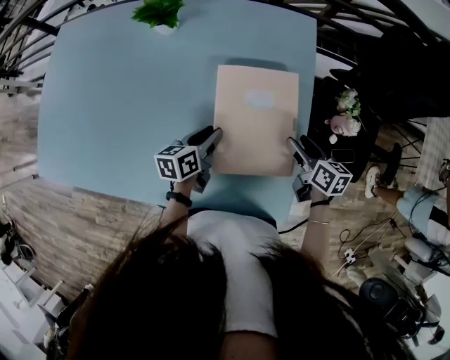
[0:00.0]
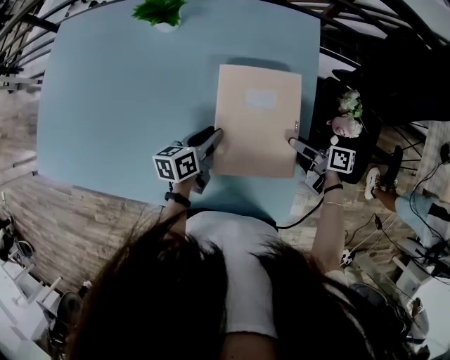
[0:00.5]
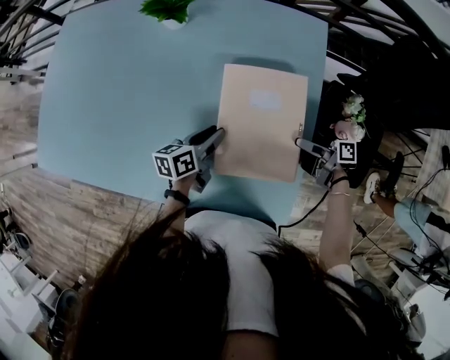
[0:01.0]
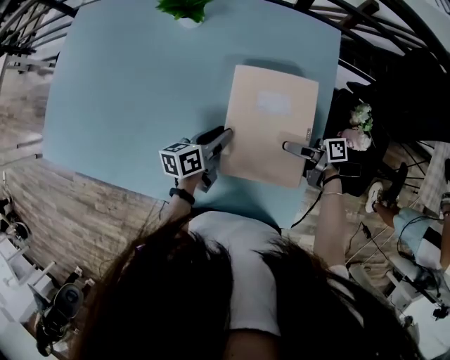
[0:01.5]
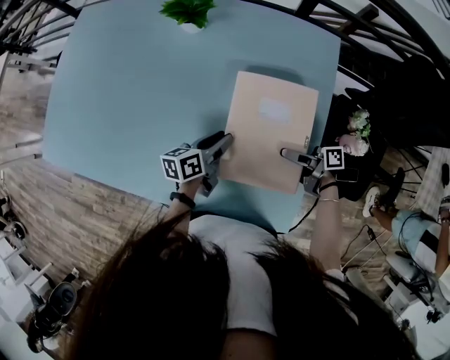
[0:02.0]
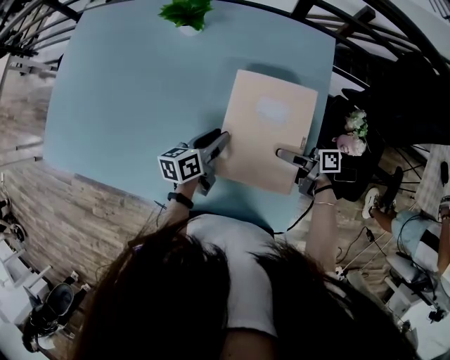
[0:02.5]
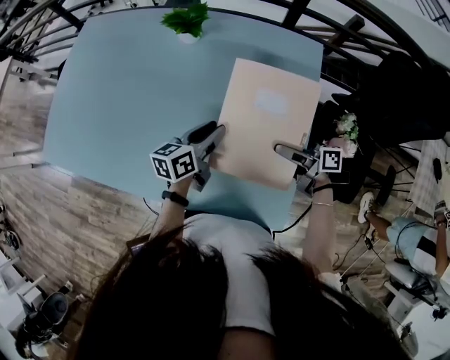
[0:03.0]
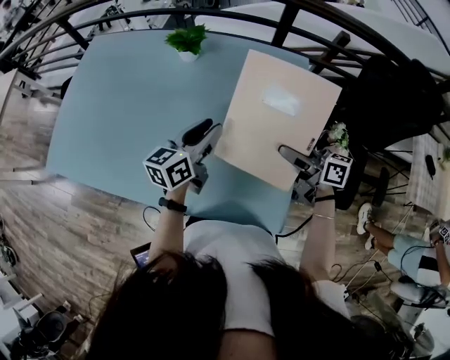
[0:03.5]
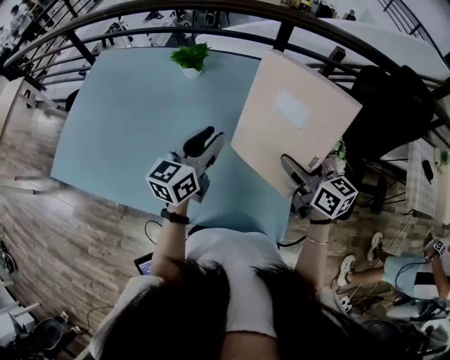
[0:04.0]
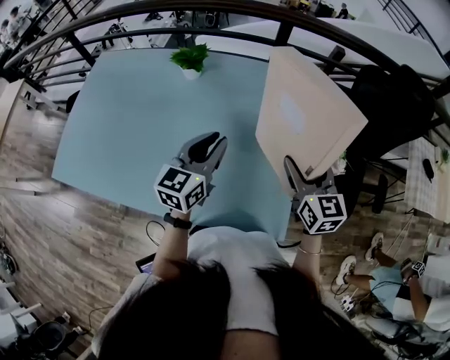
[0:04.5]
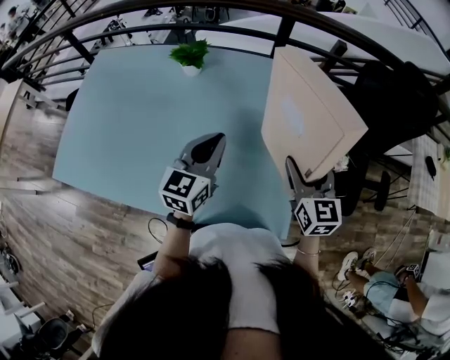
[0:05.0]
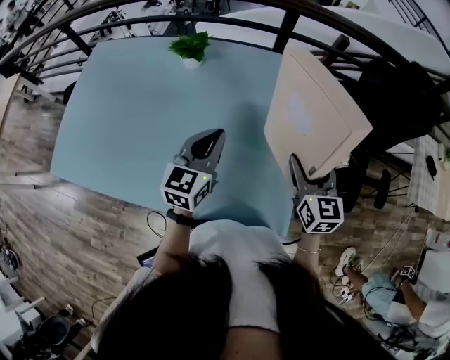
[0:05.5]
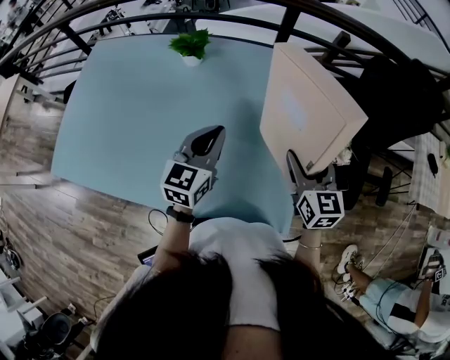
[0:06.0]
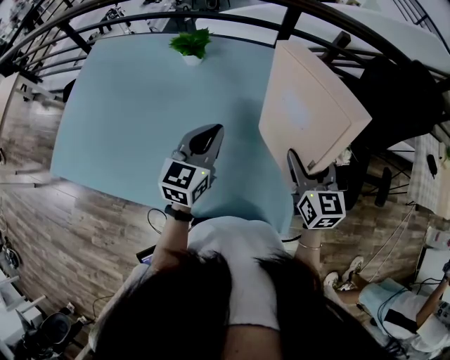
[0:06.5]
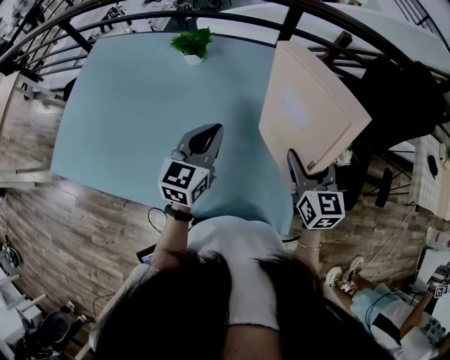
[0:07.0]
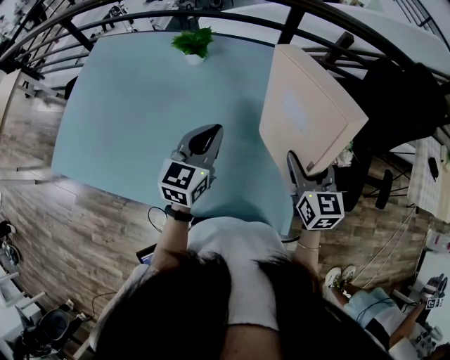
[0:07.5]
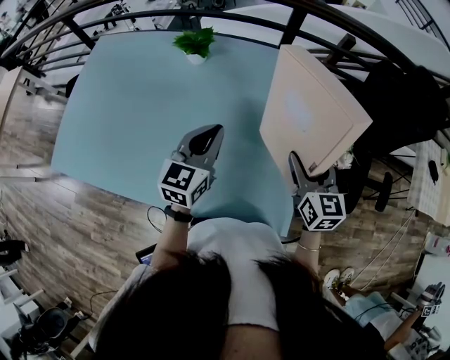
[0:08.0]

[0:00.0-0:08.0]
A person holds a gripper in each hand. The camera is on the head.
0:00.0 to 0:02.0: The right gripper is displaced to the left by roughly 10 cm, and rotates roughly 60 degrees.
0:02.0 to 0:04.0: The grippers both shift upward by approximately 25 cm. The right gripper twists roughly 60 degrees counterclockwise, seen from behind. Meanwhile the left gripper turns by about 40 degrees.
0:04.0 to 0:06.0: The right gripper changes its angle by roughly 30 degrees. Meanwhile the left gripper closes up.
0:06.0 to 0:08.0: The two grippers keep their place.

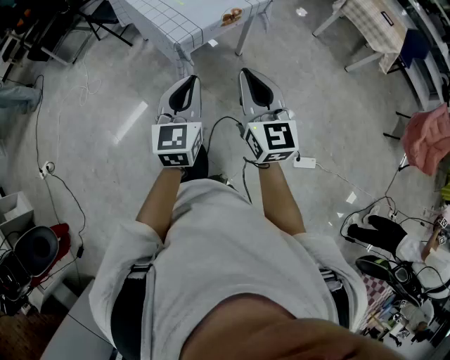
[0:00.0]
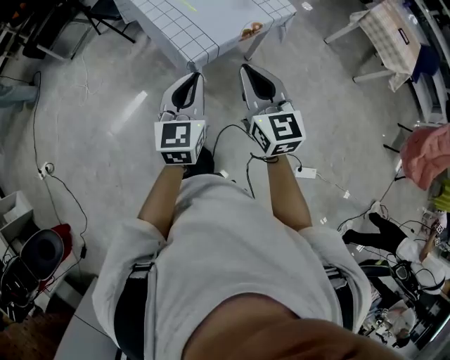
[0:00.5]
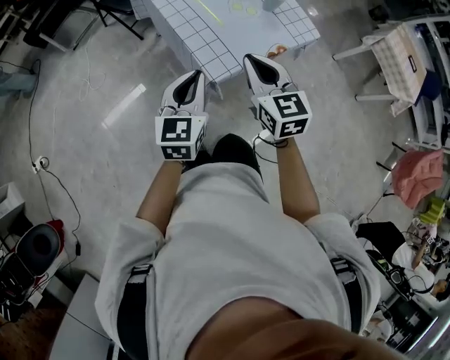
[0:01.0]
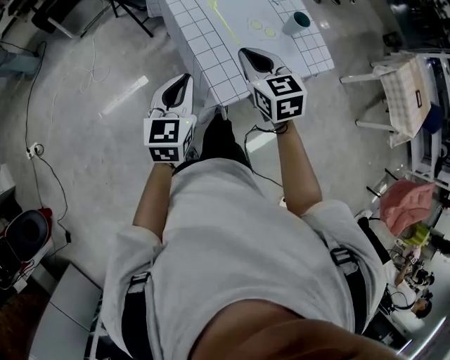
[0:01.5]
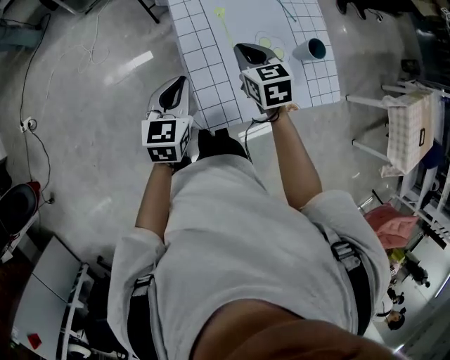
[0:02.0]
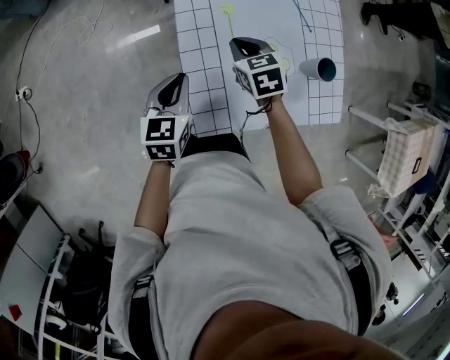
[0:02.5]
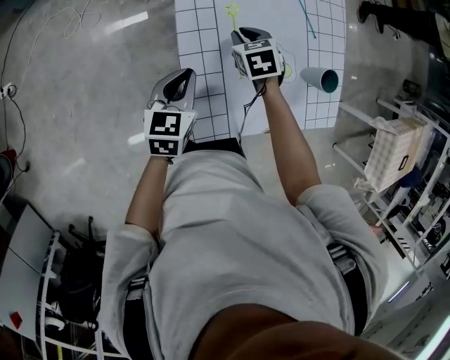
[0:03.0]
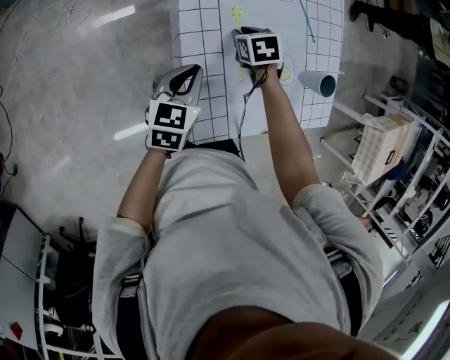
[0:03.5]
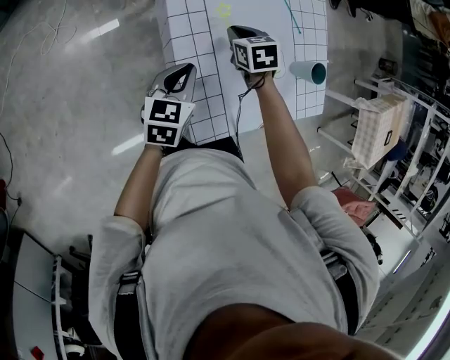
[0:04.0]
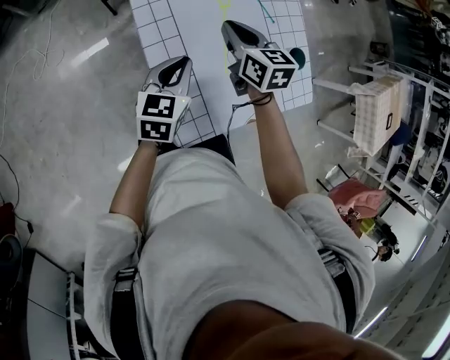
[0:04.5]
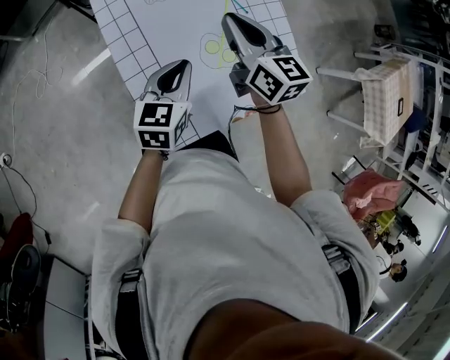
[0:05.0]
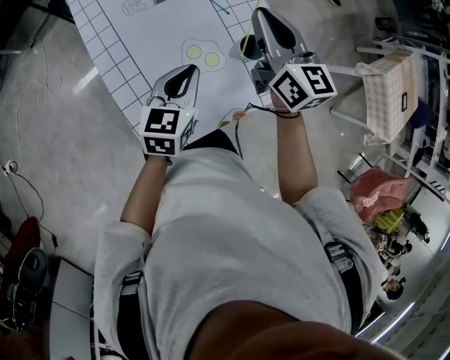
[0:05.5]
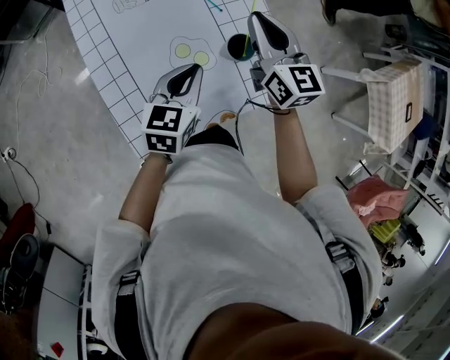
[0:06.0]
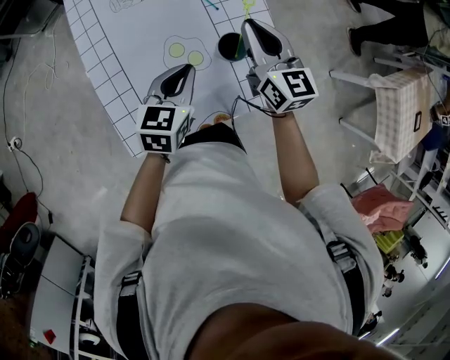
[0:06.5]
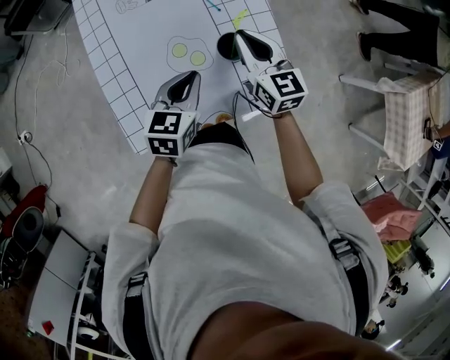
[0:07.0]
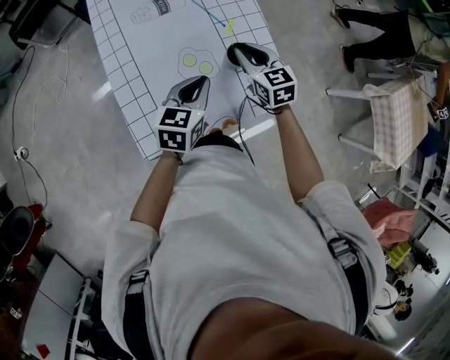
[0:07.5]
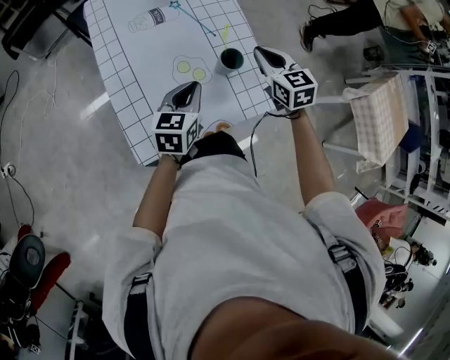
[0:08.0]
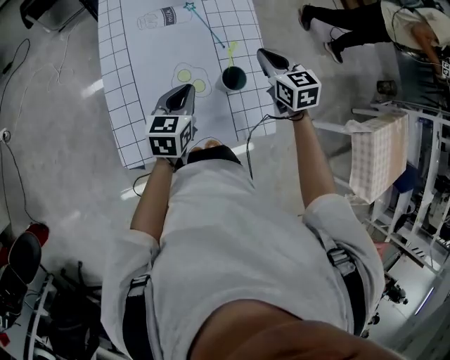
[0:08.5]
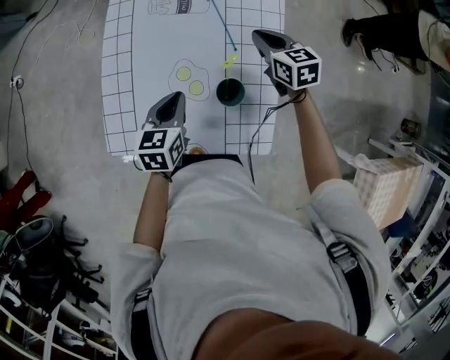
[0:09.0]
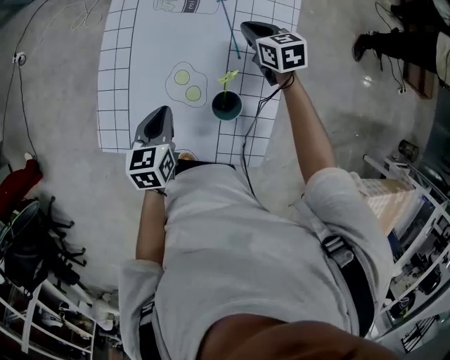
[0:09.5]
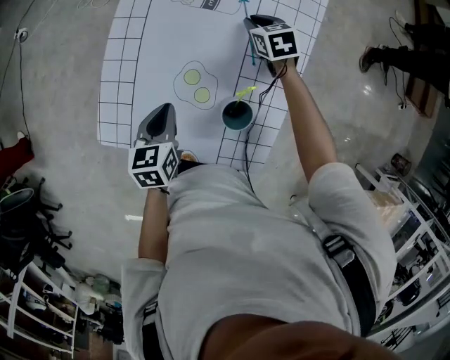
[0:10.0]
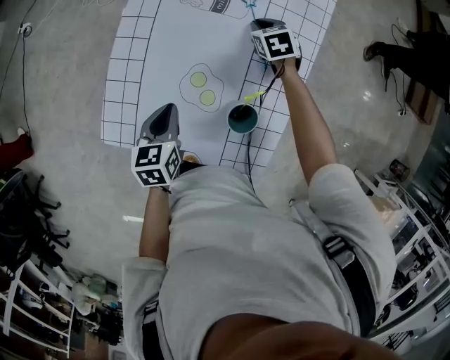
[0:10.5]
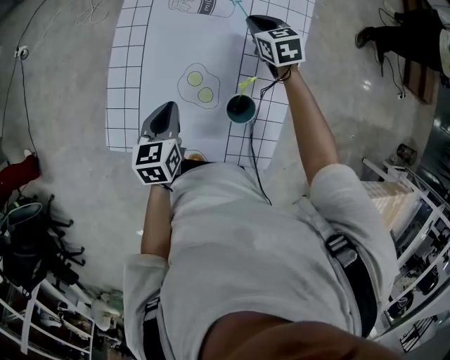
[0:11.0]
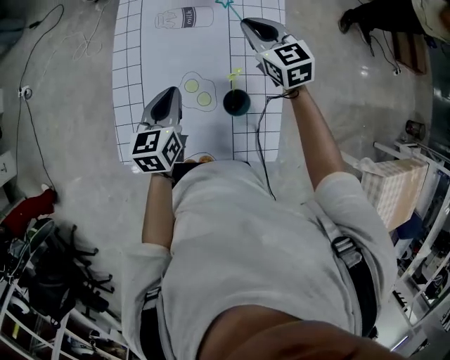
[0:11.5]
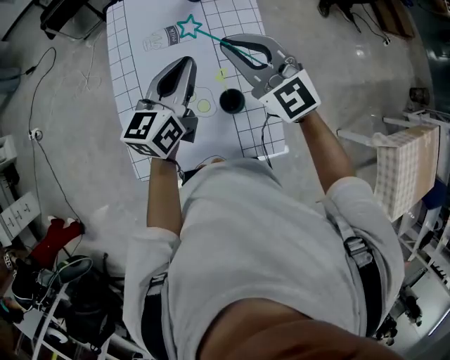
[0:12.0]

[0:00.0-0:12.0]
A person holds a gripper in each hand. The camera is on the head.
0:00.0 to 0:02.0: The pair of grippers is taken some 60 cm. The left gripper changes its angle by approximately 30 degrees. The right gripper tilts its fingers about 40 degrees downward.
0:02.0 to 0:04.0: Both grippers move forward and downward, approximately 15 cm.
0:04.0 to 0:06.0: The right gripper travels to the right and upward by roughly 35 cm, and tilts its fingers roughly 50 degrees upward. The left gripper shifts some 30 cm to the right.
0:06.0 to 0:08.0: Both grippers travel together backward, approximately 5 cm. The right gripper goes downward and returns, roughly 10 cm each way, and changes its angle by approximately 20 degrees.
0:08.0 to 0:10.0: The left gripper heads downward, covering some 10 cm, and changes its angle by about 50 degrees. The right gripper ends up some 35 cm from where it was, and rotates roughly 40 degrees.
0:10.0 to 0:12.0: The left gripper is displaced upward and to the right by roughly 25 cm, and points its fingers roughly 40 degrees further upward; the right gripper travels upward and backward by about 40 cm, and points its fingers some 40 degrees further upward.

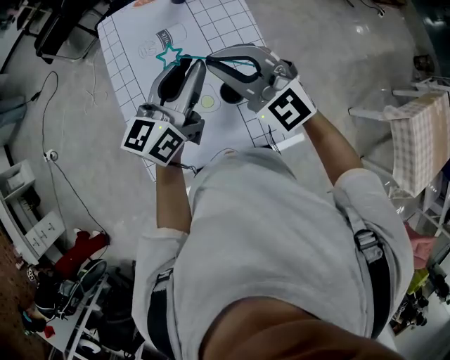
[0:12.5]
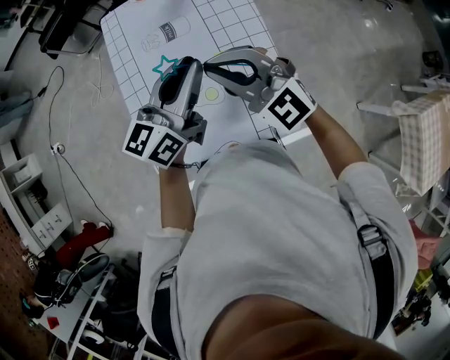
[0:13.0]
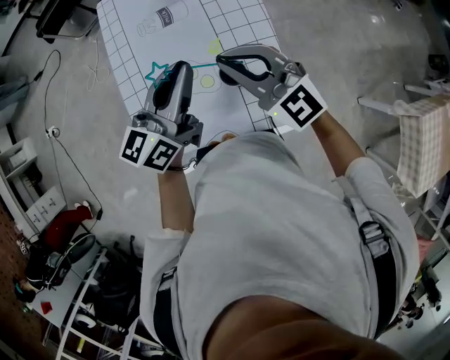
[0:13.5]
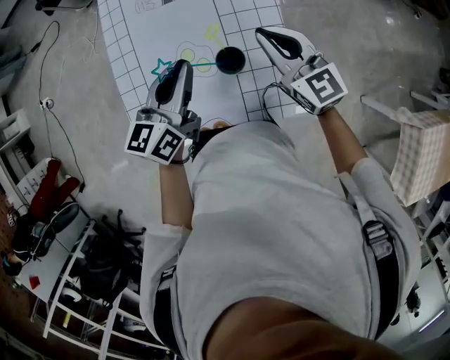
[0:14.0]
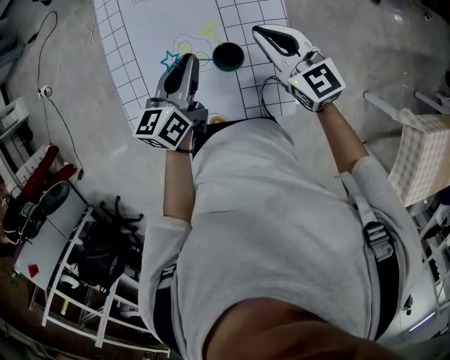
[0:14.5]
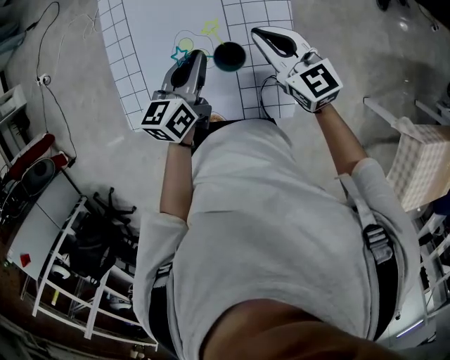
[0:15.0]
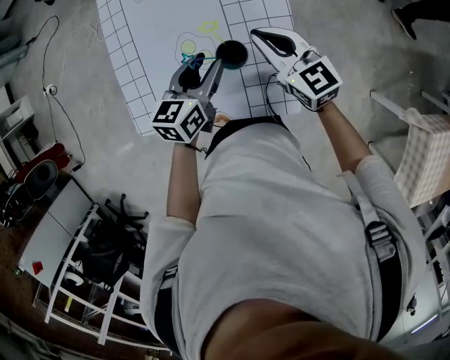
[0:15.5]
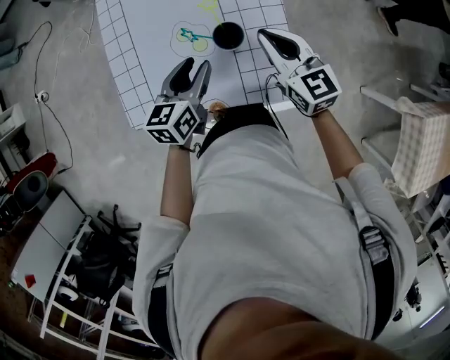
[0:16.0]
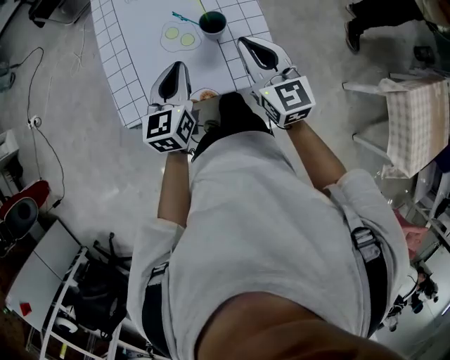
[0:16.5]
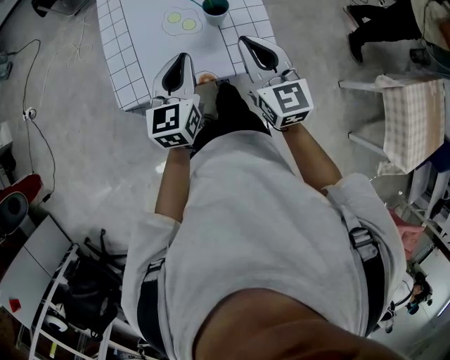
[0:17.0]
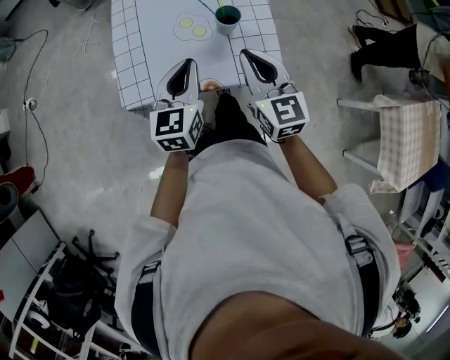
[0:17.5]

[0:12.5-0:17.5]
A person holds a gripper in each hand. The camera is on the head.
0:12.5 to 0:15.0: The right gripper shifts some 20 cm downward and to the right, and rotates about 40 degrees. The left gripper goes roughly 20 cm downward, rotates some 30 degrees, and closes.
0:15.0 to 0:17.5: The grippers both shift backward by approximately 20 cm. The right gripper turns by roughly 20 degrees. The left gripper turns by roughly 20 degrees, and opens and closes again.

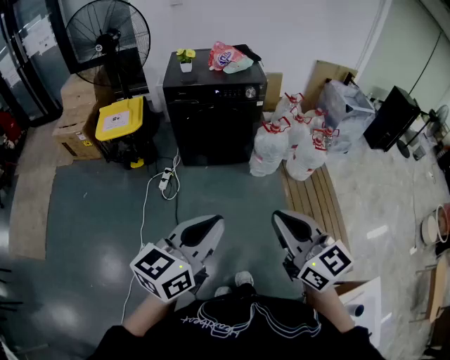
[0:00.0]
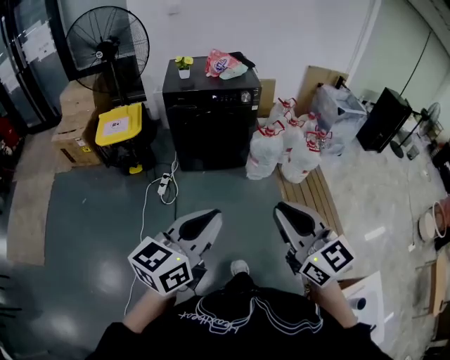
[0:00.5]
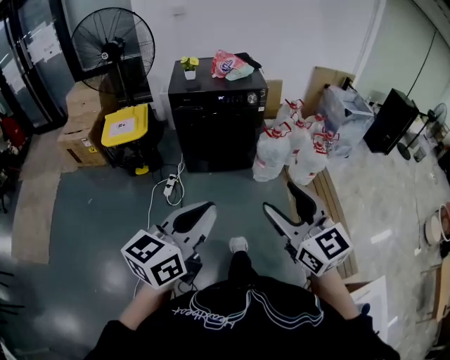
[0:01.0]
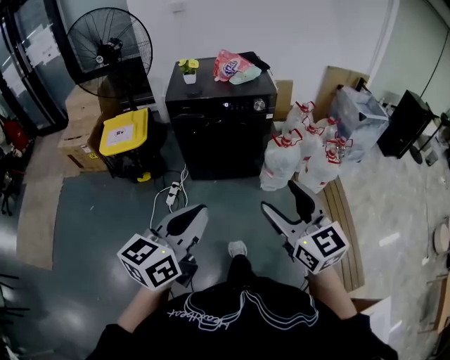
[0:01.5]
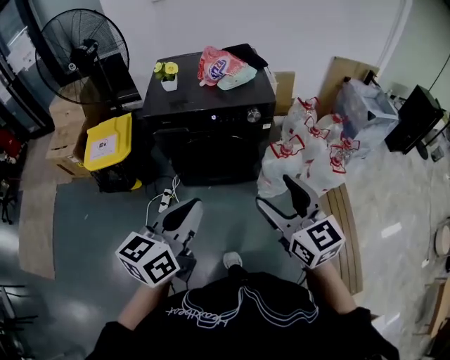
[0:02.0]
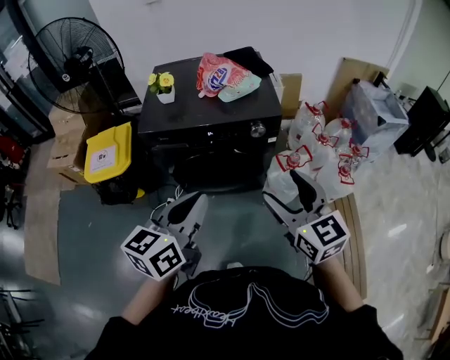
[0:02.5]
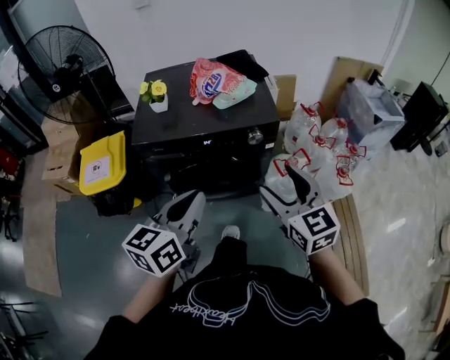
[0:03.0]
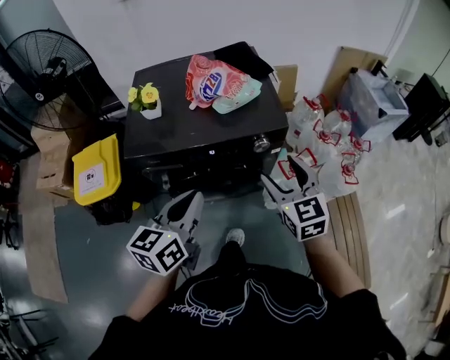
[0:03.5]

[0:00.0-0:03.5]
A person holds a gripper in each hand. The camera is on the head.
0:00.0 to 0:02.0: The two grippers go some 35 cm forward. The right gripper opens up.
0:02.0 to 0:03.5: Both grippers travel together forward, roughly 25 cm.
